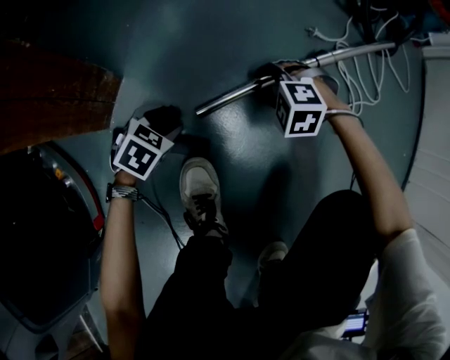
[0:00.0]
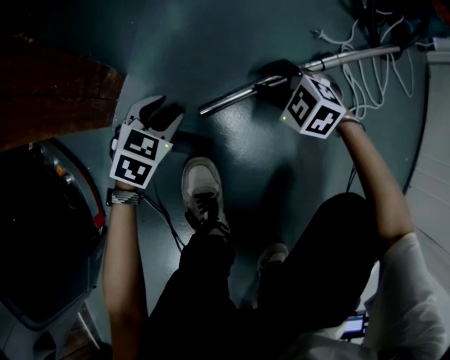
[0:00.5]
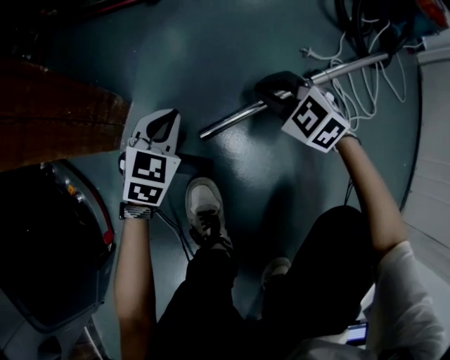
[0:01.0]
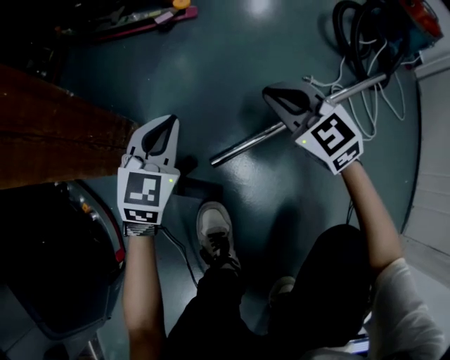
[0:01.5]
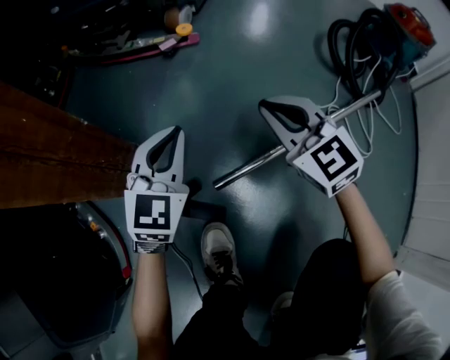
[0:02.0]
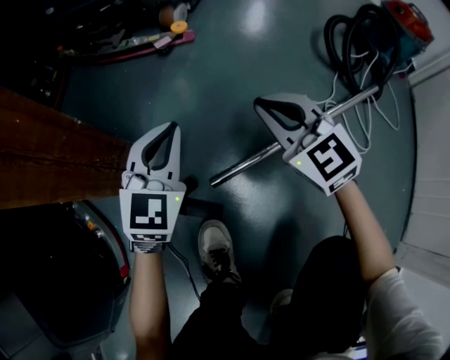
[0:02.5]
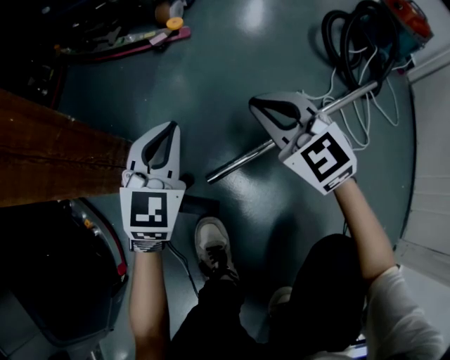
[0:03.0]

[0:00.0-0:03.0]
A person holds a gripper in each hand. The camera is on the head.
0:00.0 to 0:01.5: The left gripper heads upward and forward, covering some 20 cm, angles its fingers upward, by some 40 degrees, and closes its fingers. Meanwhile the right gripper moves upward, some 20 cm, tips its fingers upward by roughly 40 degrees, and closes up.
0:01.5 to 0:03.0: Both grippers move upward, about 5 cm.

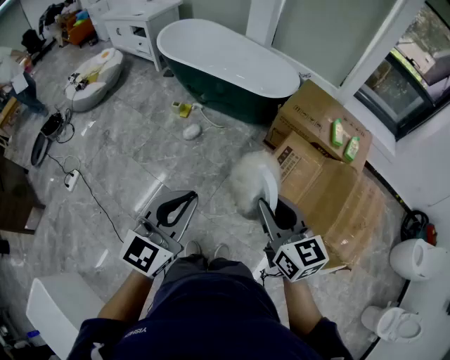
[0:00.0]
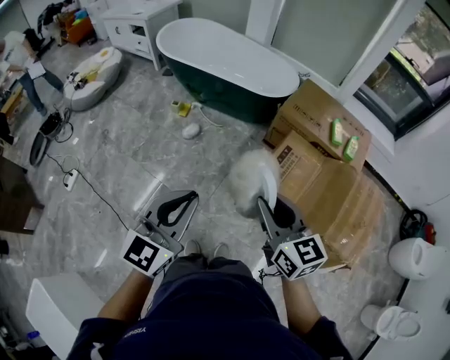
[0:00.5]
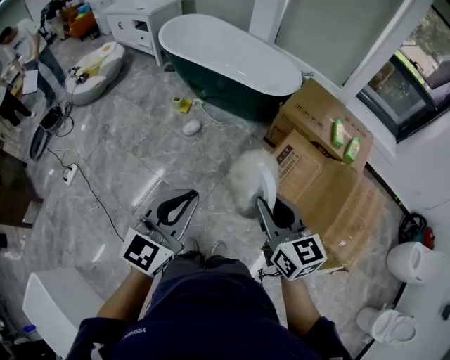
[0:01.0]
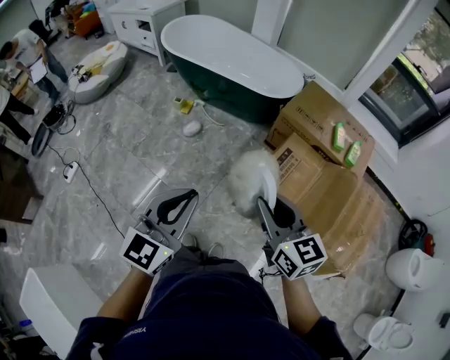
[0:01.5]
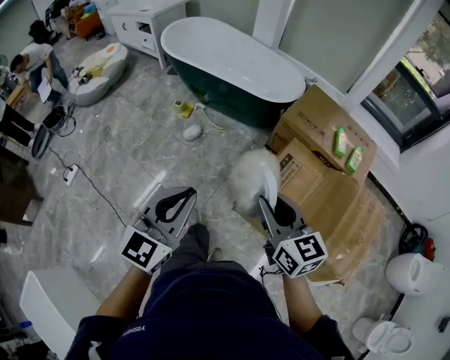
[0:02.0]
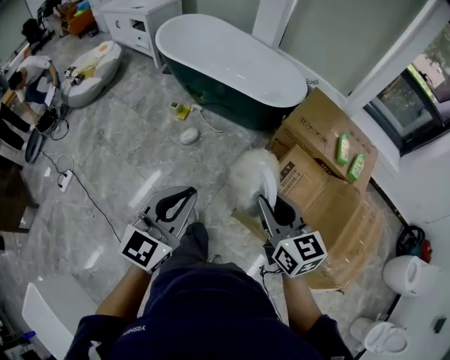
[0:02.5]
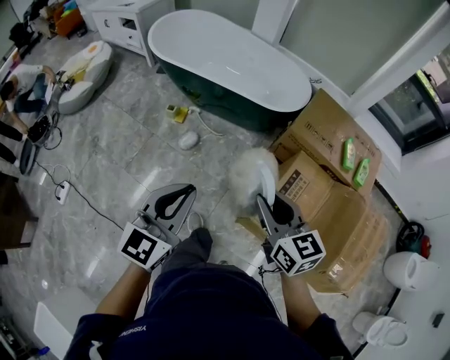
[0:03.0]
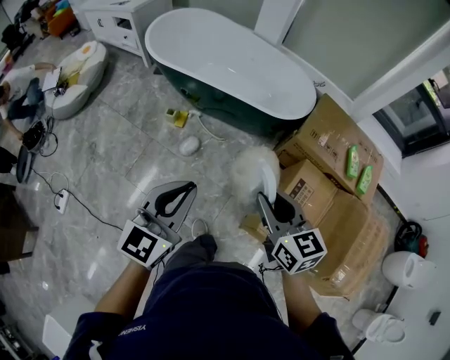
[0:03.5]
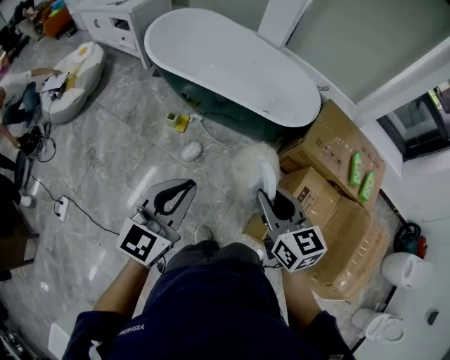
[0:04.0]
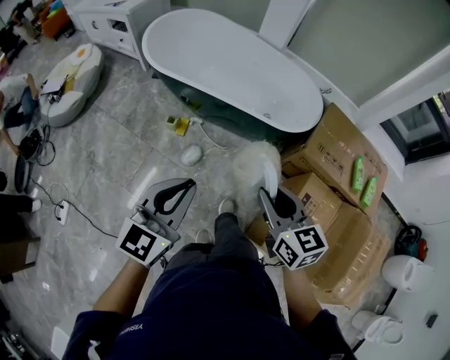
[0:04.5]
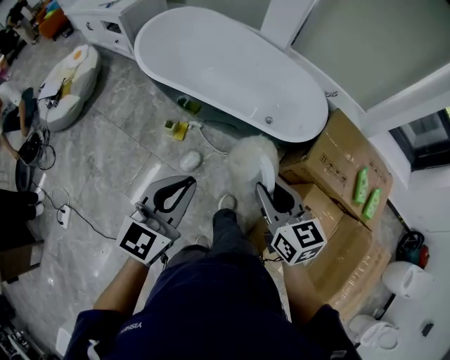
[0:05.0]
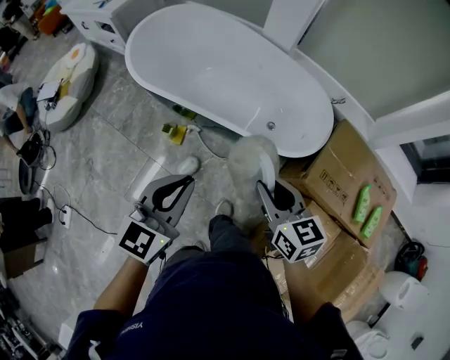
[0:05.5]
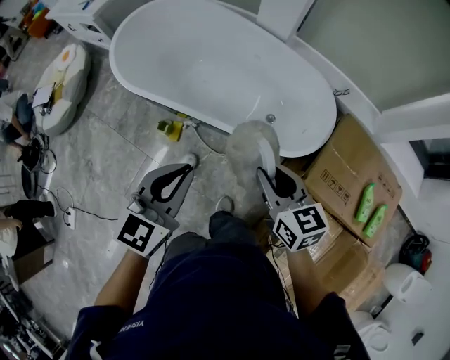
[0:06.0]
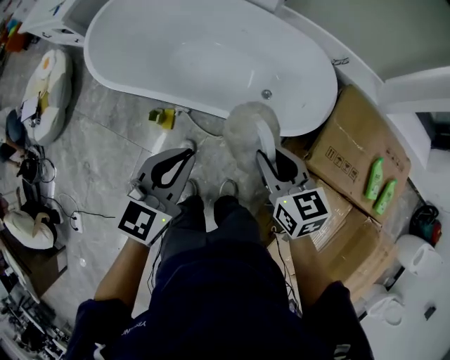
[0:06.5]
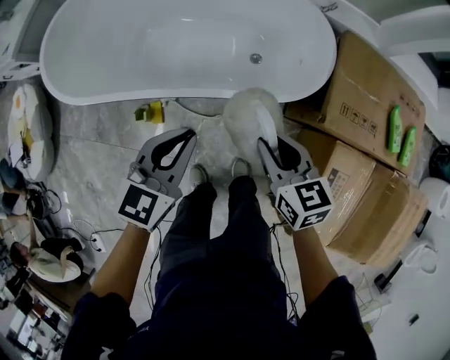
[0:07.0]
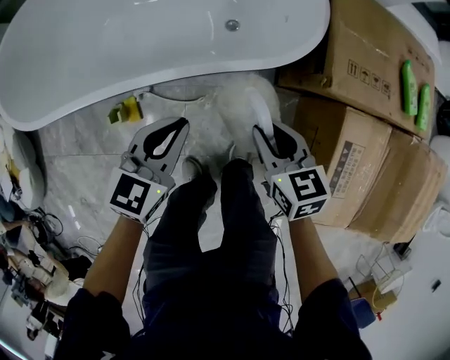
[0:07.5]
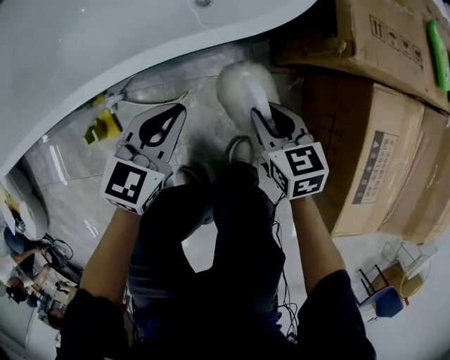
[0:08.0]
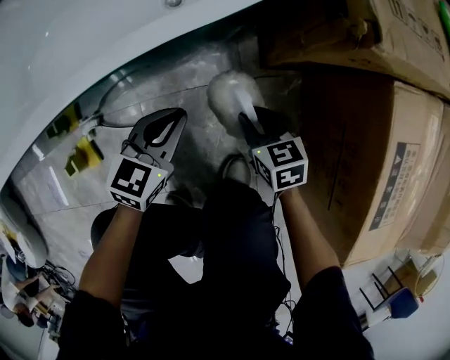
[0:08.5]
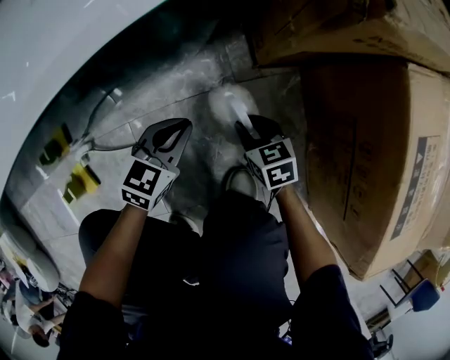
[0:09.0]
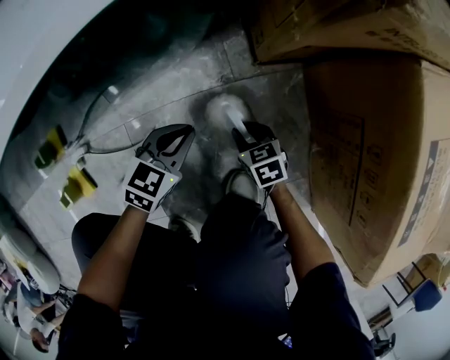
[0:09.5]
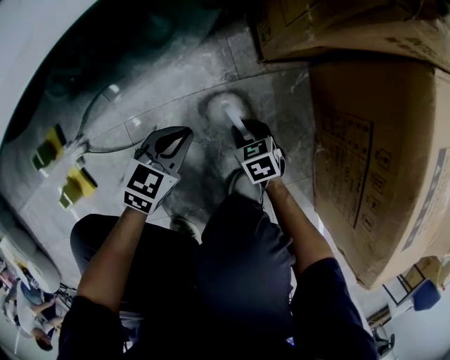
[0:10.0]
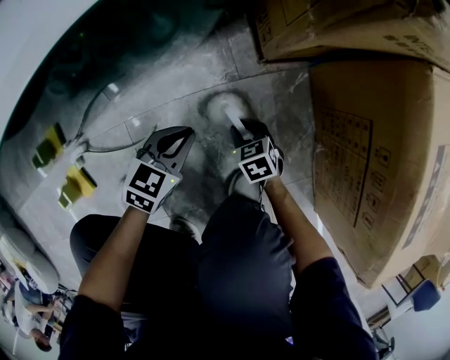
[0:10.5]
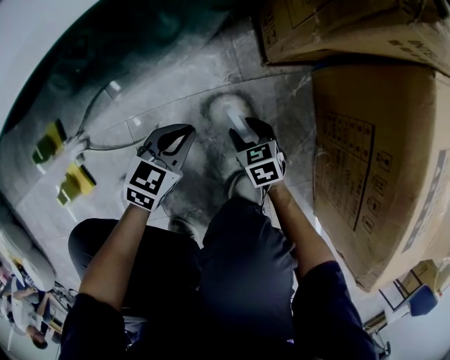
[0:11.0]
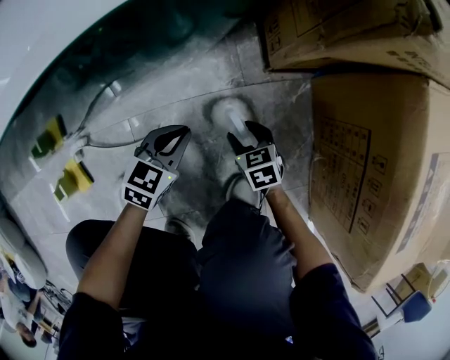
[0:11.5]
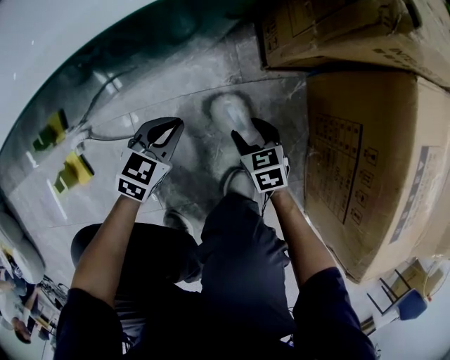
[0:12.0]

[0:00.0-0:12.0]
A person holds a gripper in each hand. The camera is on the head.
0:00.0 to 0:02.0: The right gripper travels forward by some 5 cm. The left gripper shifts by about 5 cm.
0:02.0 to 0:04.0: The two grippers go about 40 cm forward and to the left.
0:04.0 to 0:06.0: Both grippers move forward, about 35 cm.
0:06.0 to 0:08.0: The two grippers go about 50 cm downward. The left gripper rotates about 40 degrees, while the right gripper swivels approximately 40 degrees.
0:08.0 to 0:10.0: The grippers both shift downward by roughly 35 cm. The left gripper swivels approximately 20 degrees.
0:10.0 to 0:12.0: The right gripper shifts approximately 5 cm upward, and opens.

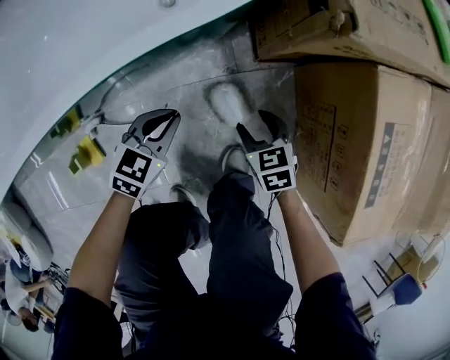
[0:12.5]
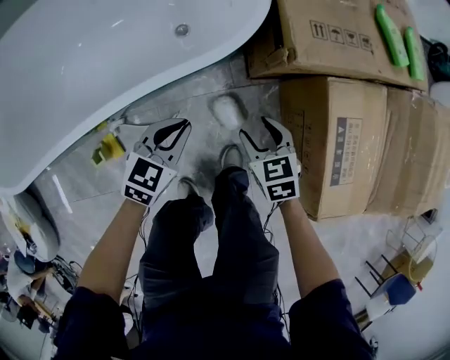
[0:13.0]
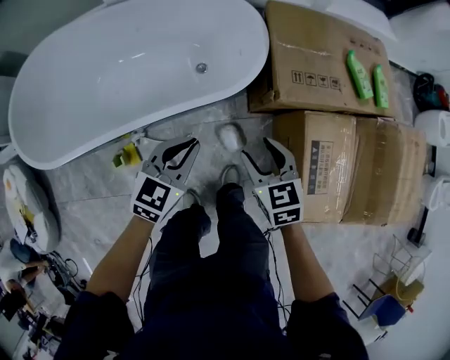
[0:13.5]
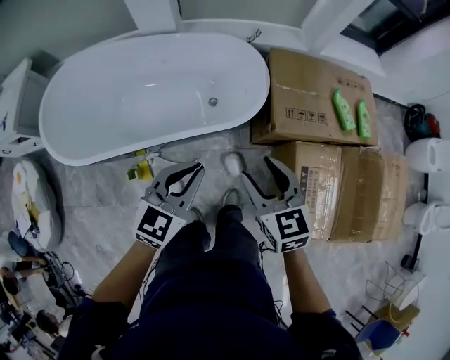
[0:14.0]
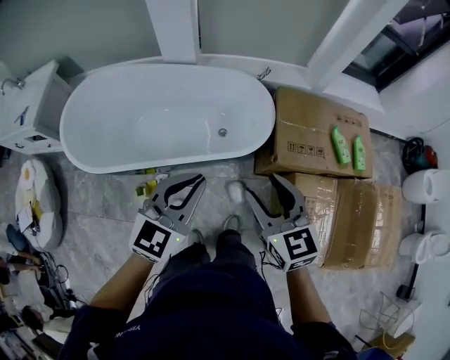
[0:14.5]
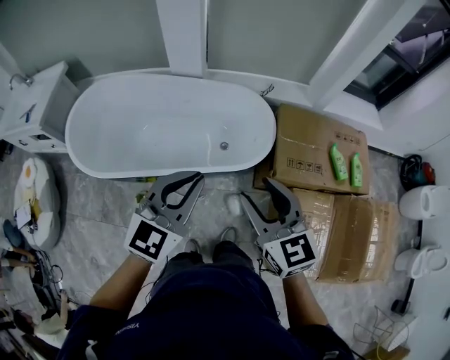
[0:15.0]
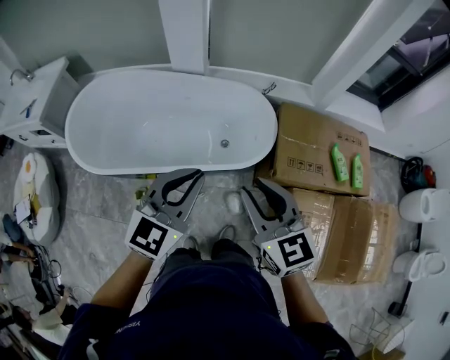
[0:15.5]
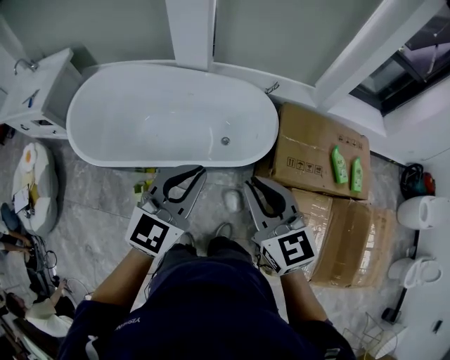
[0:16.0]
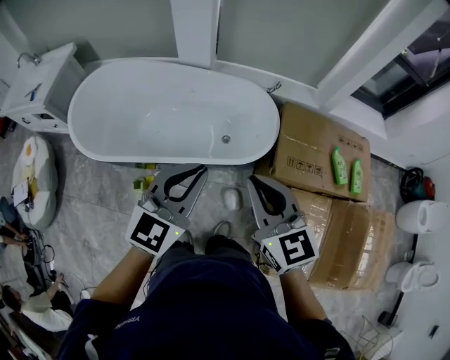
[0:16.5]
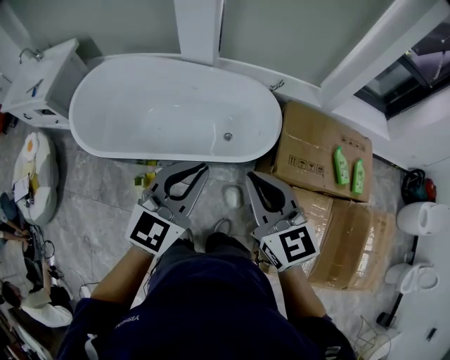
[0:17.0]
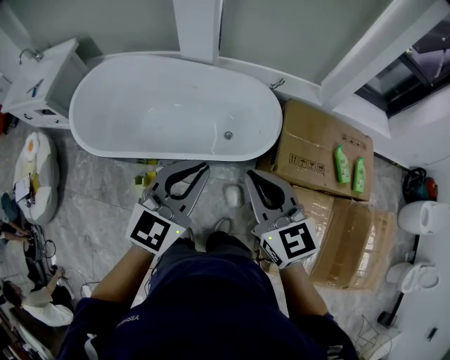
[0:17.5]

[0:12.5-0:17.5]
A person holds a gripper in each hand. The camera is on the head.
0:12.5 to 0:15.0: Both grippers move upward, about 80 cm. The left gripper tilts its fingers approximately 30 degrees upward; the right gripper tilts its fingers roughly 40 degrees upward.
0:15.0 to 0:17.5: The right gripper closes up.

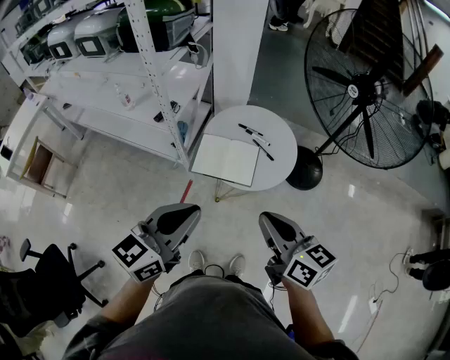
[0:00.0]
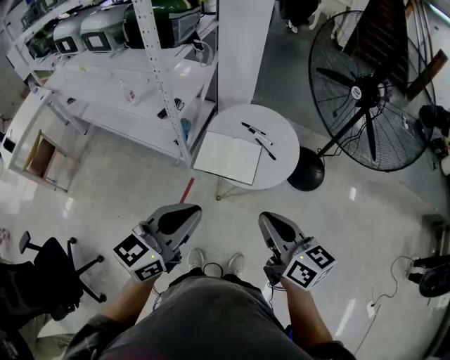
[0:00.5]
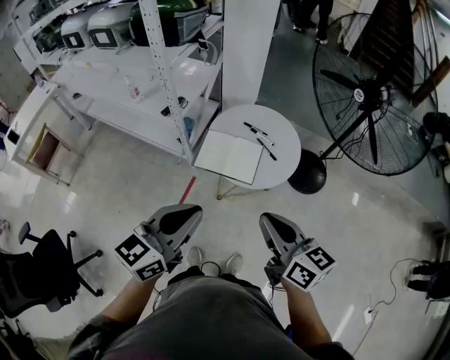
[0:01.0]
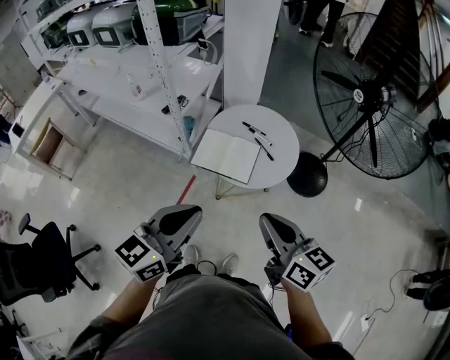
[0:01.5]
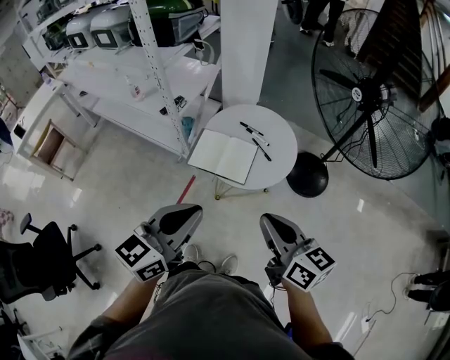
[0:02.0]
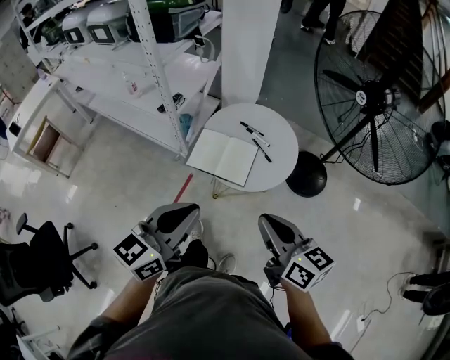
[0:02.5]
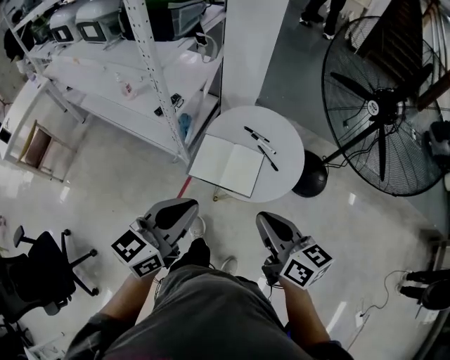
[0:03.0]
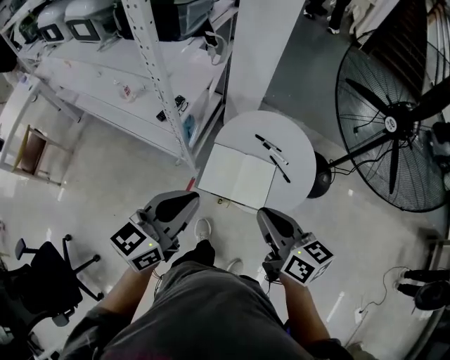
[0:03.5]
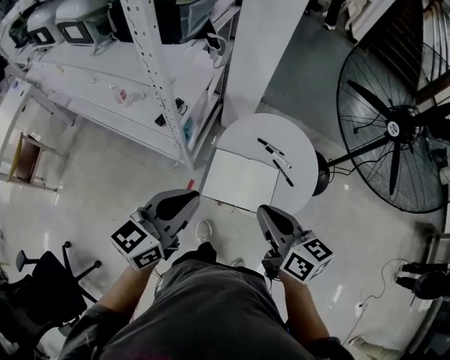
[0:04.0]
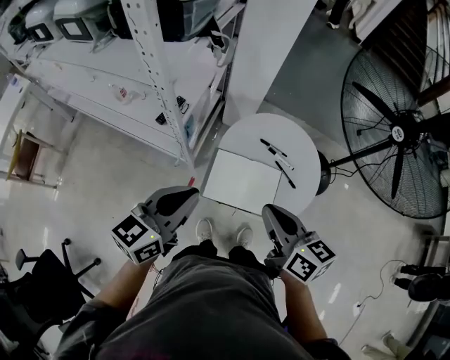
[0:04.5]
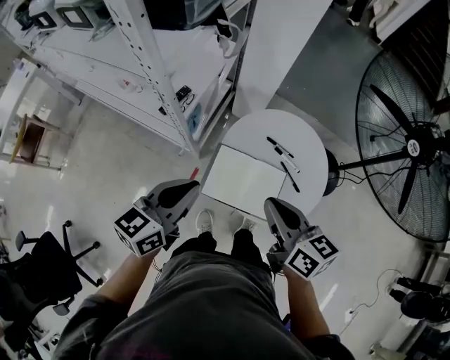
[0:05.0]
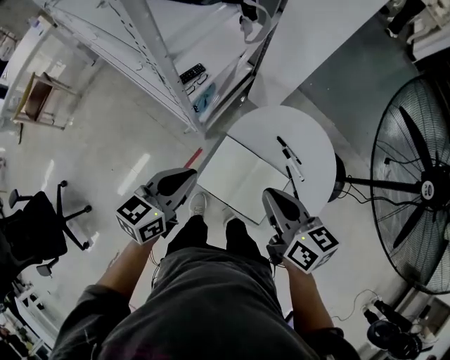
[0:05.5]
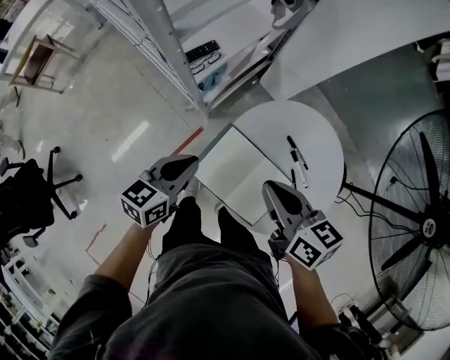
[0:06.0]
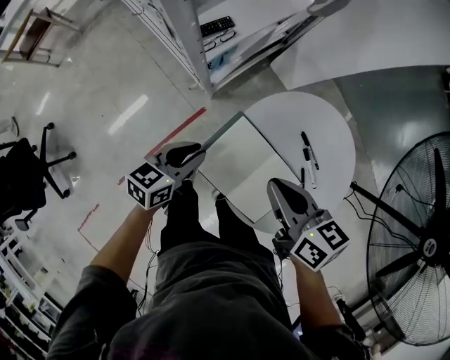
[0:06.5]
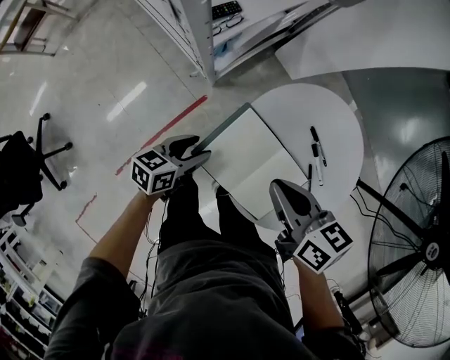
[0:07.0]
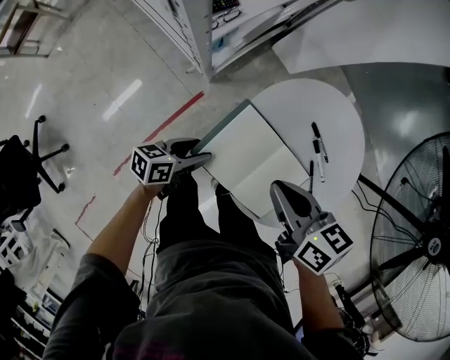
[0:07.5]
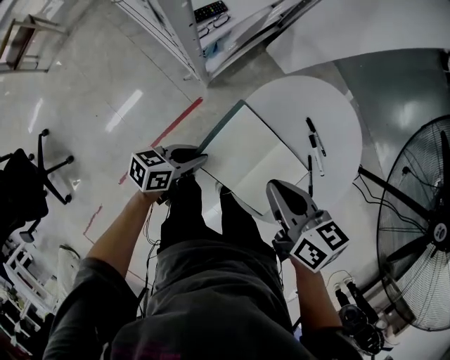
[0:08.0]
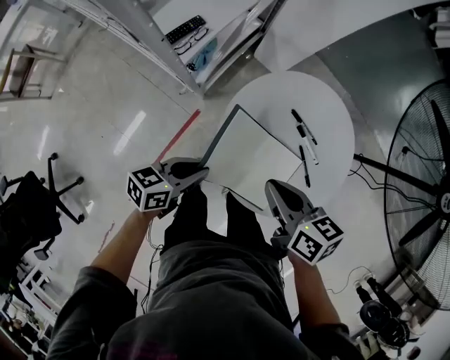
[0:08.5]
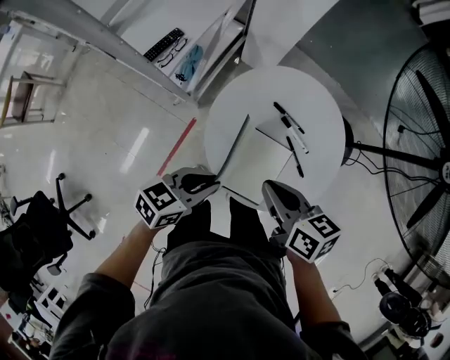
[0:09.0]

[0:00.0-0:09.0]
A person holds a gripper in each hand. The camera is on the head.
0:00.0 to 0:02.0: Both grippers move to the right, roughly 5 cm.
0:02.0 to 0:04.5: Both grippers move forward and to the left, some 30 cm.
0:04.5 to 0:07.0: The left gripper shifts approximately 35 cm downward, turns by approximately 40 degrees, and opens. Meanwhile the right gripper is displaced downward by about 20 cm, and turns by about 40 degrees.
0:07.0 to 0:09.0: The left gripper goes approximately 20 cm upward and to the right, swivels some 30 degrees, and closes its fingers. Meanwhile the right gripper goes roughly 10 cm to the right and backward.
